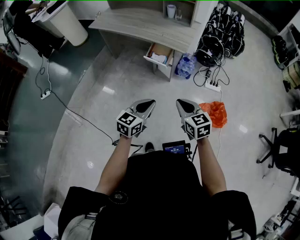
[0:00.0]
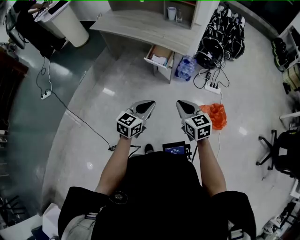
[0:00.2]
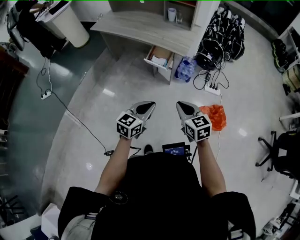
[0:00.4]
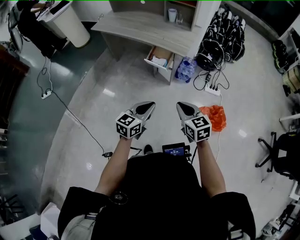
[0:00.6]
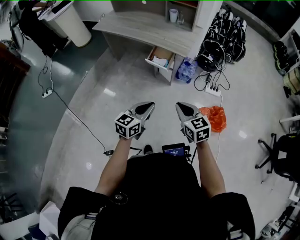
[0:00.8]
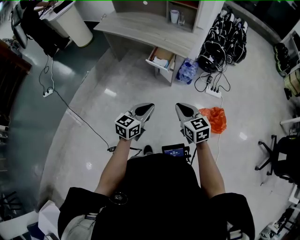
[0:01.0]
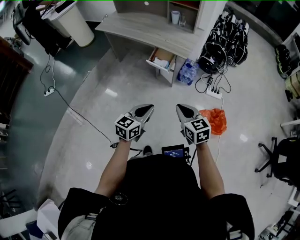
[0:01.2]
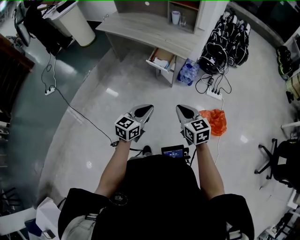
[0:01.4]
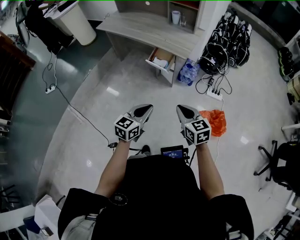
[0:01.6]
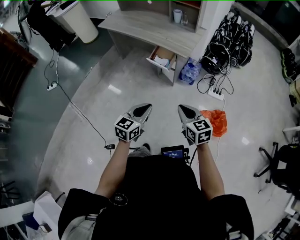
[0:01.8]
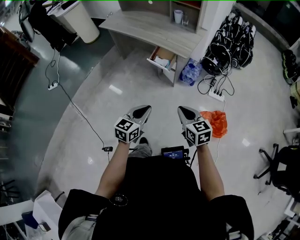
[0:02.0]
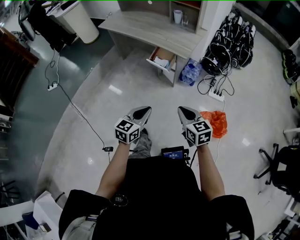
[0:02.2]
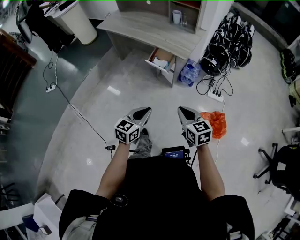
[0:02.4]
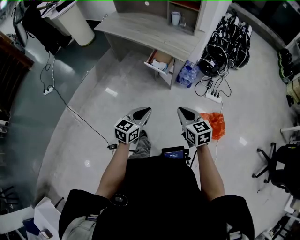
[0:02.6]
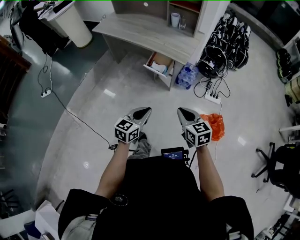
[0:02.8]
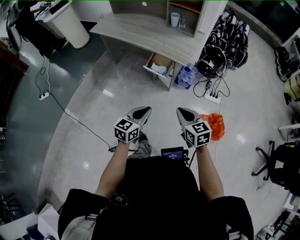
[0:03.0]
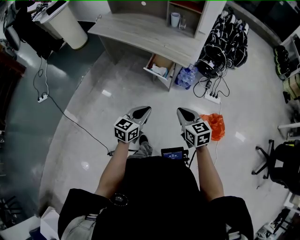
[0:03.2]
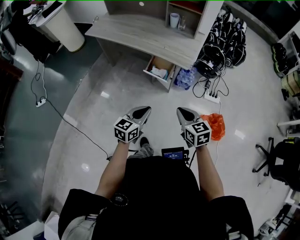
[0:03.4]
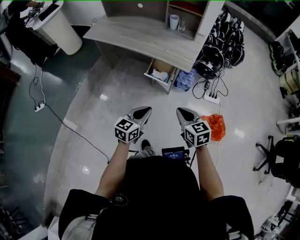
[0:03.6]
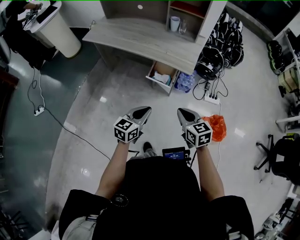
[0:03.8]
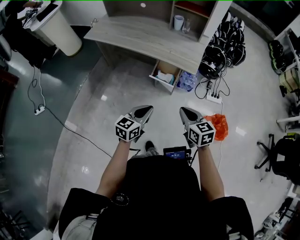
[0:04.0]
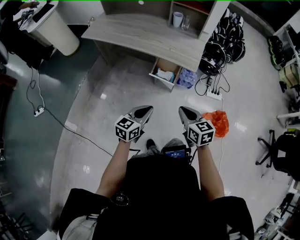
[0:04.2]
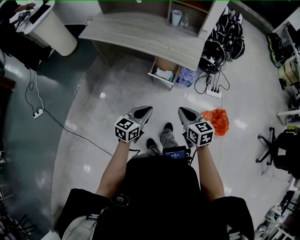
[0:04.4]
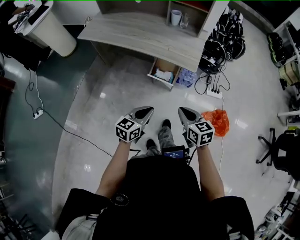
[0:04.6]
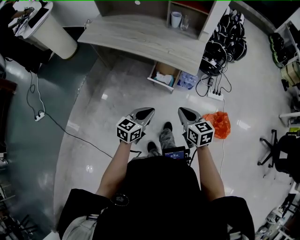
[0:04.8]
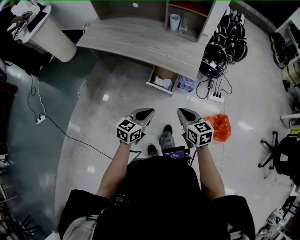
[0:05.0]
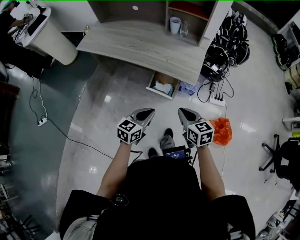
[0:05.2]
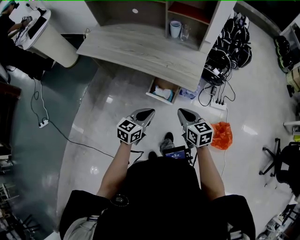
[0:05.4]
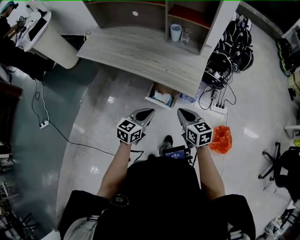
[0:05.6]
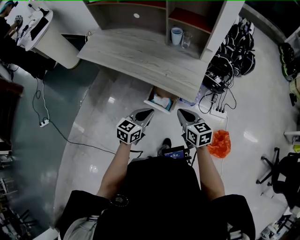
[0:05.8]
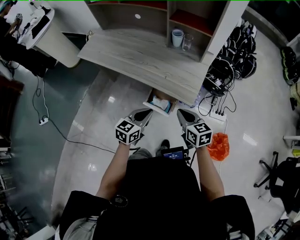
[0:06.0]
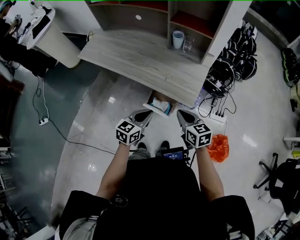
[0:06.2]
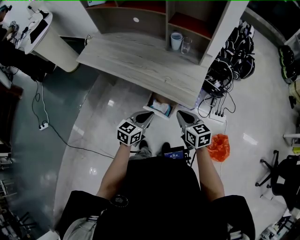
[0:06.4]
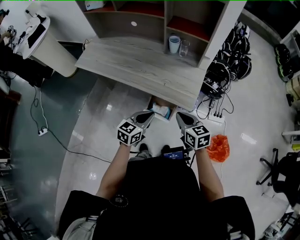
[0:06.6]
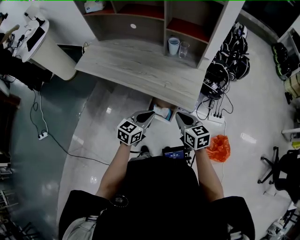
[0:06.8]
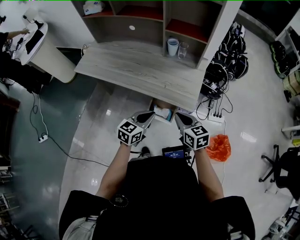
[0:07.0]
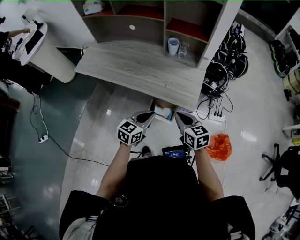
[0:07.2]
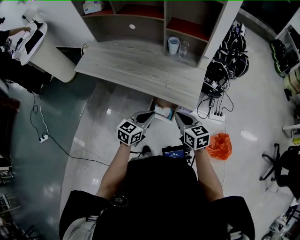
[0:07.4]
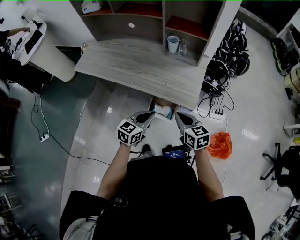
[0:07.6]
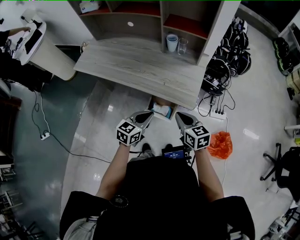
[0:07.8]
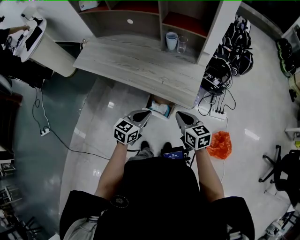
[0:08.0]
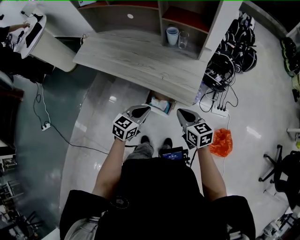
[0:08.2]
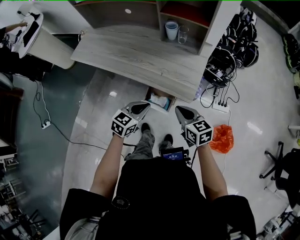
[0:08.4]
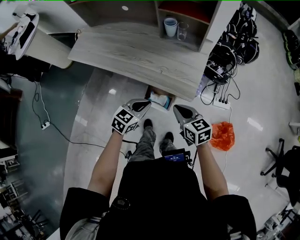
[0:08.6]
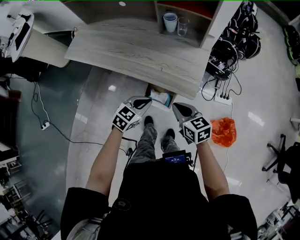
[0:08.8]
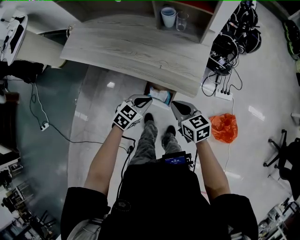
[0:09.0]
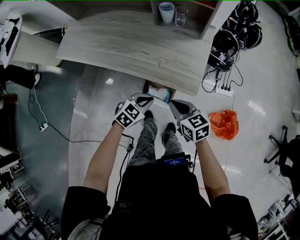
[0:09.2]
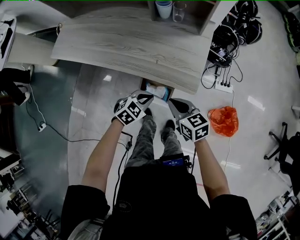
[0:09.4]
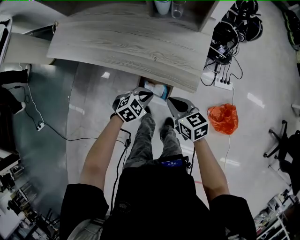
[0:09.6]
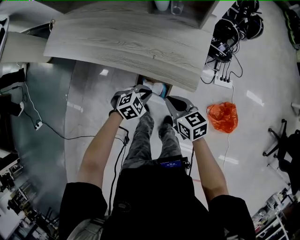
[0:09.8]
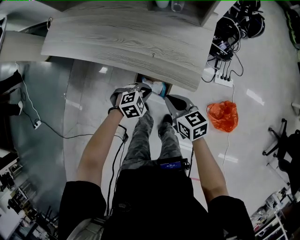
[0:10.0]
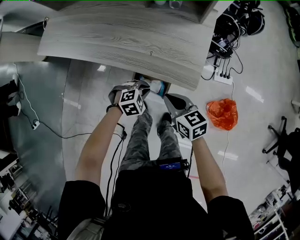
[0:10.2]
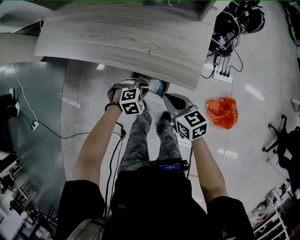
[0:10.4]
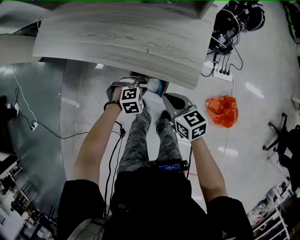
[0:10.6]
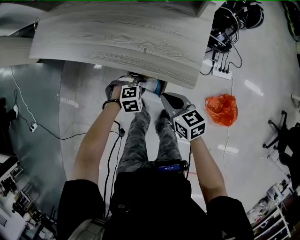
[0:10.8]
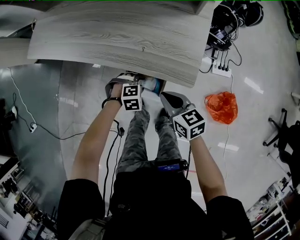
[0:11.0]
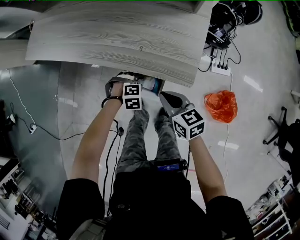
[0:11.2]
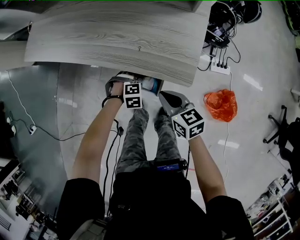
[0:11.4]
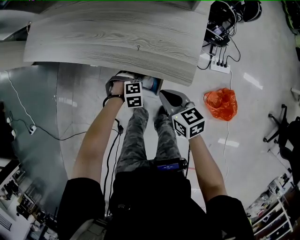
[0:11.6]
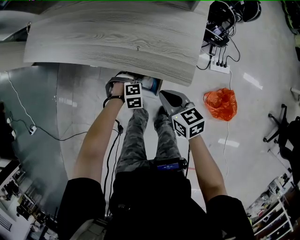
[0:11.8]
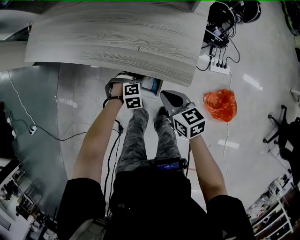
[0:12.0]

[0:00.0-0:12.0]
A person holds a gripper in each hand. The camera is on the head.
0:00.0 to 0:01.6: There are only small adjustments of the grippers.
0:01.6 to 0:03.0: Both grippers move forward, about 10 cm.
0:03.0 to 0:04.4: The two grippers go roughly 15 cm to the left and forward.
0:04.4 to 0:06.0: The two grippers go about 20 cm forward.
0:06.0 to 0:07.6: The grippers make only small movements.
0:07.6 to 0:09.0: The two grippers go about 10 cm downward. The left gripper turns by about 20 degrees.
0:09.0 to 0:10.4: The left gripper goes approximately 15 cm downward, and turns by approximately 40 degrees; the right gripper goes some 10 cm downward.
0:10.4 to 0:12.0: The left gripper heads downward, covering some 5 cm, and opens its fingers.

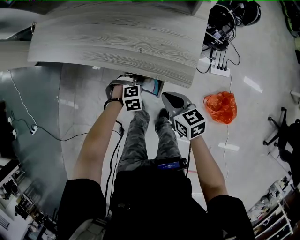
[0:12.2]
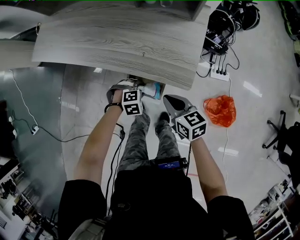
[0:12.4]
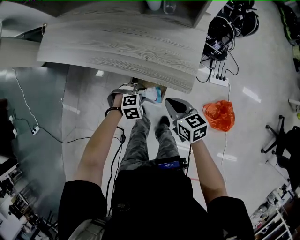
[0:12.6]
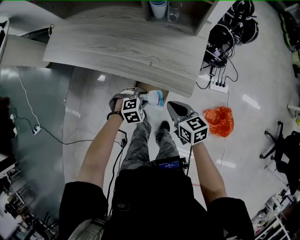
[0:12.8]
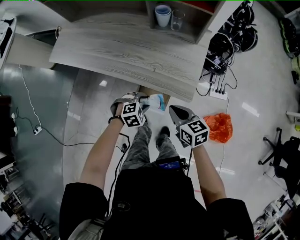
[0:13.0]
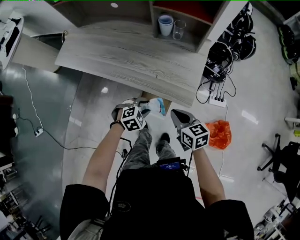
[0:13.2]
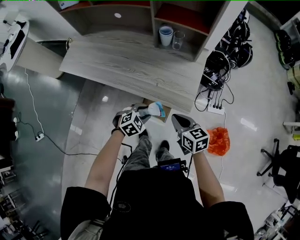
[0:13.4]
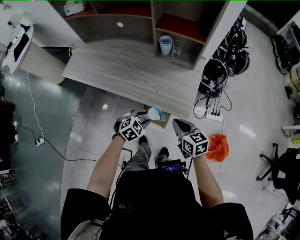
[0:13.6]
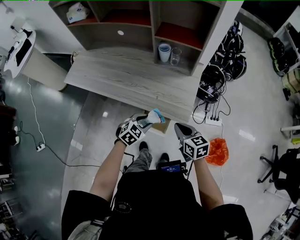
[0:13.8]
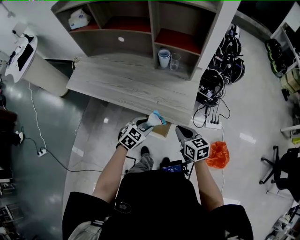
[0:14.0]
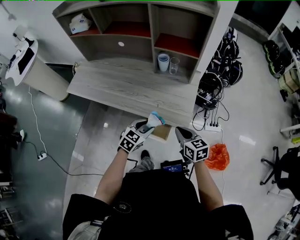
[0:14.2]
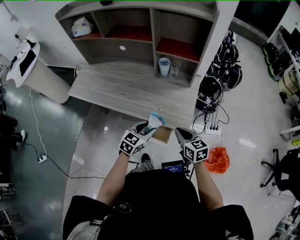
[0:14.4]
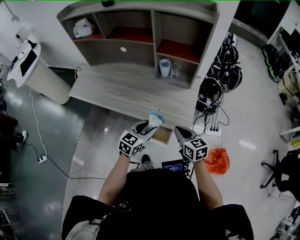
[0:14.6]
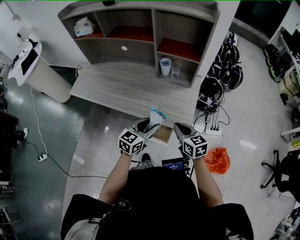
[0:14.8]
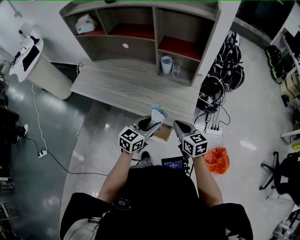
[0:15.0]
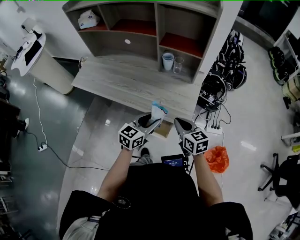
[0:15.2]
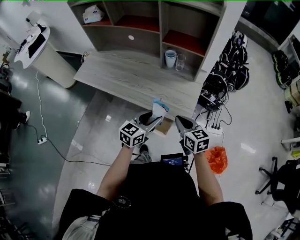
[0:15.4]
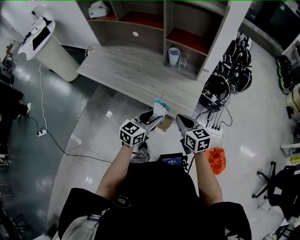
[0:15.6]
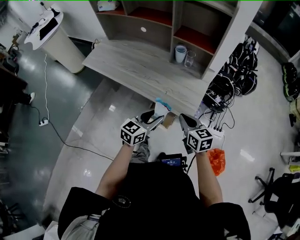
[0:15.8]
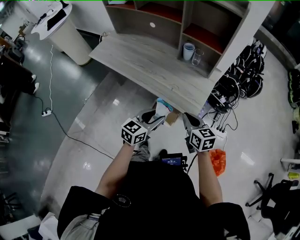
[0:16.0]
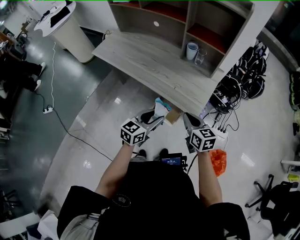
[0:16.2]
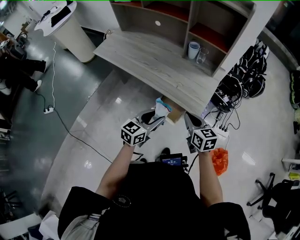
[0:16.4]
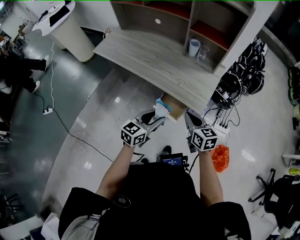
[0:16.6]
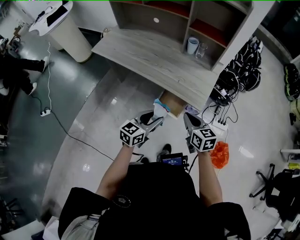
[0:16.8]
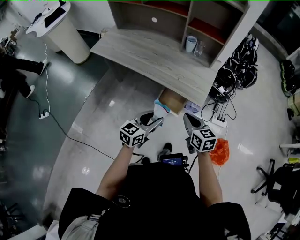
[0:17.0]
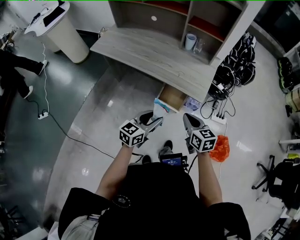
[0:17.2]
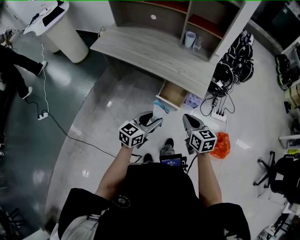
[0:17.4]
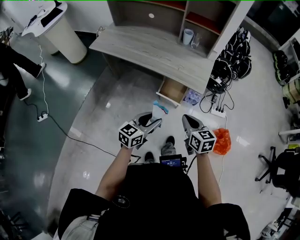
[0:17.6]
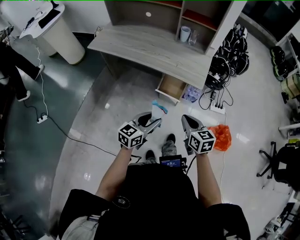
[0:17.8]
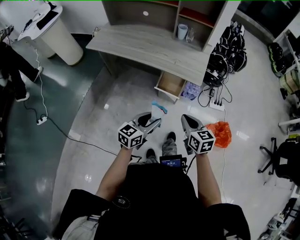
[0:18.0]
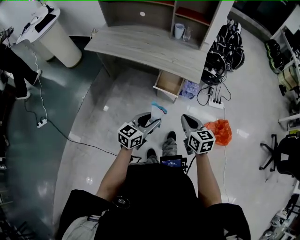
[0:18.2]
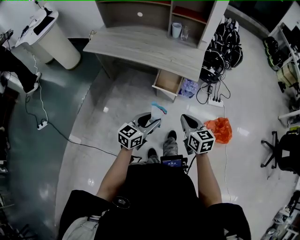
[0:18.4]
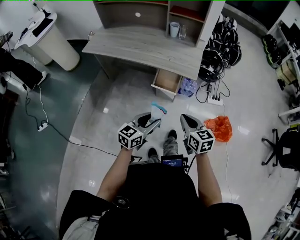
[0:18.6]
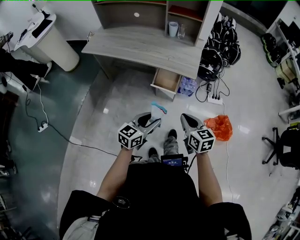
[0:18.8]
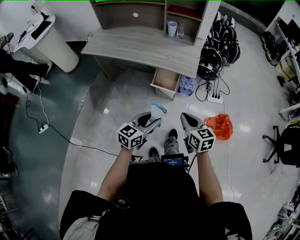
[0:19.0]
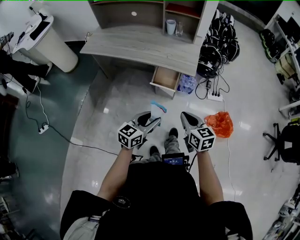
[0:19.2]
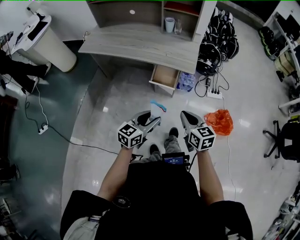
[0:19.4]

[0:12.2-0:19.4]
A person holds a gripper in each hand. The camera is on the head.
0:12.2 to 0:13.6: The right gripper shifts about 15 cm upward. Meanwhile the left gripper heads upward, covering roughly 20 cm, and swivels roughly 40 degrees.
0:13.6 to 0:15.0: The left gripper moves upward, approximately 15 cm, and points its fingers roughly 40 degrees further upward, while the right gripper travels upward by about 5 cm.
0:15.0 to 0:16.6: The right gripper is displaced backward by approximately 10 cm, while the left gripper travels backward by approximately 10 cm.
0:16.6 to 0:18.0: The grippers both shift backward by roughly 20 cm.
0:18.0 to 0:19.4: The grippers make only small movements.

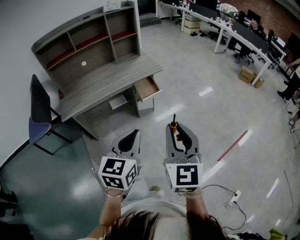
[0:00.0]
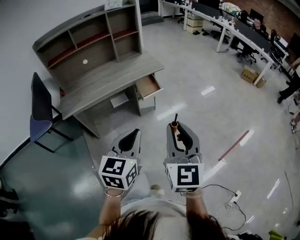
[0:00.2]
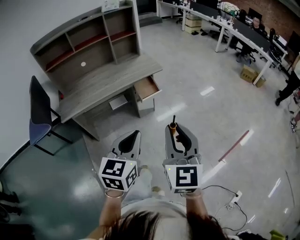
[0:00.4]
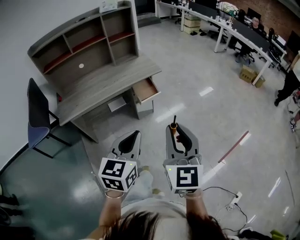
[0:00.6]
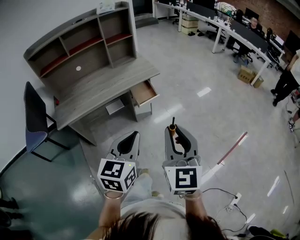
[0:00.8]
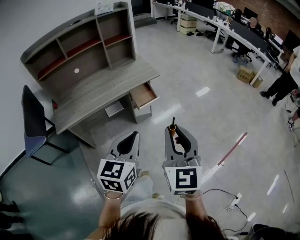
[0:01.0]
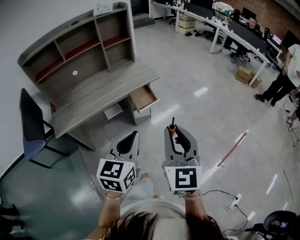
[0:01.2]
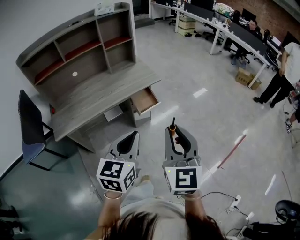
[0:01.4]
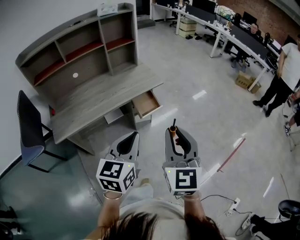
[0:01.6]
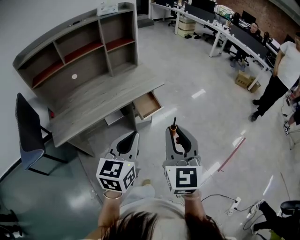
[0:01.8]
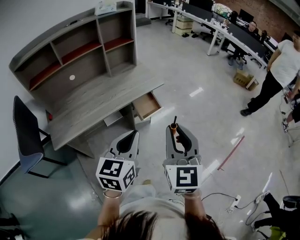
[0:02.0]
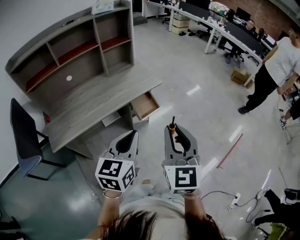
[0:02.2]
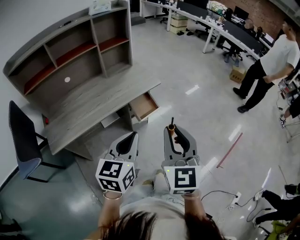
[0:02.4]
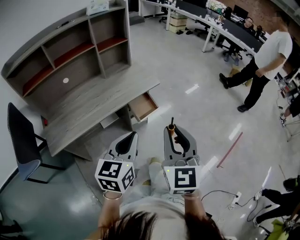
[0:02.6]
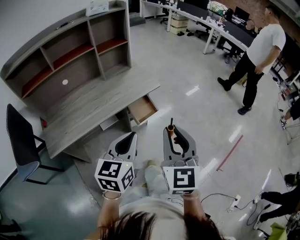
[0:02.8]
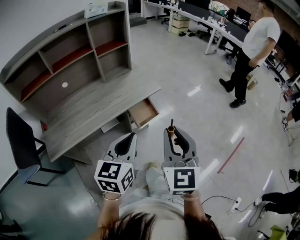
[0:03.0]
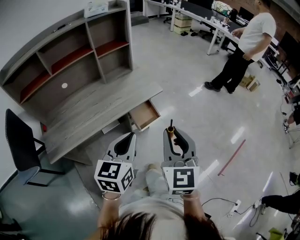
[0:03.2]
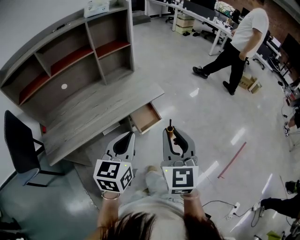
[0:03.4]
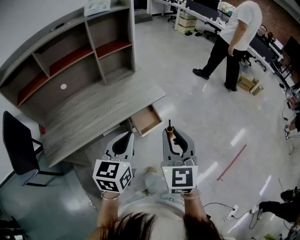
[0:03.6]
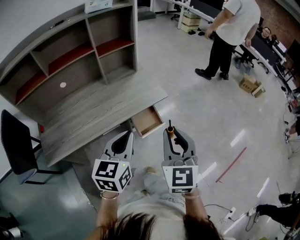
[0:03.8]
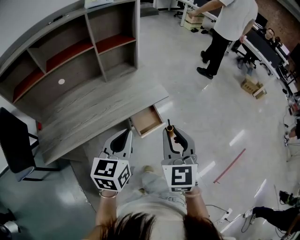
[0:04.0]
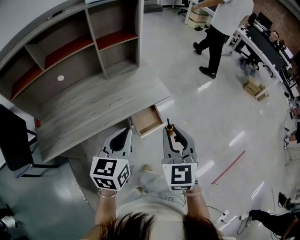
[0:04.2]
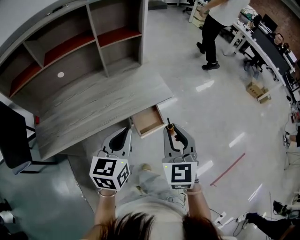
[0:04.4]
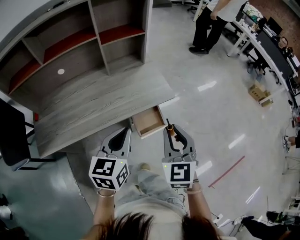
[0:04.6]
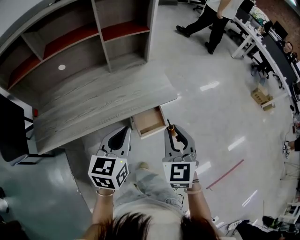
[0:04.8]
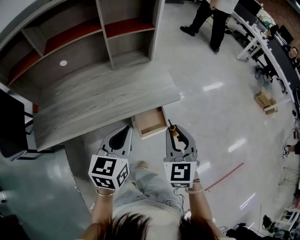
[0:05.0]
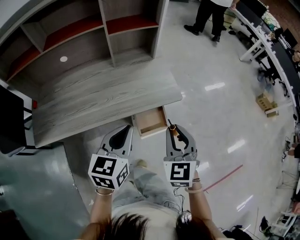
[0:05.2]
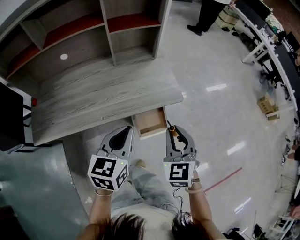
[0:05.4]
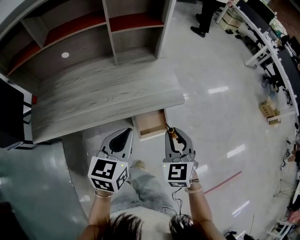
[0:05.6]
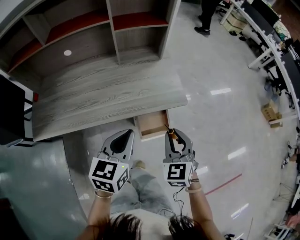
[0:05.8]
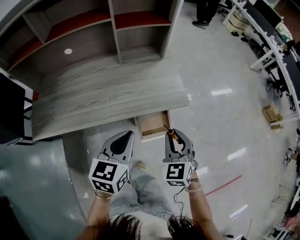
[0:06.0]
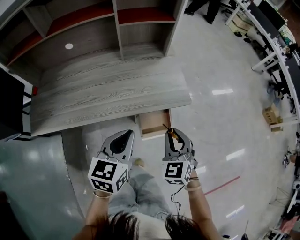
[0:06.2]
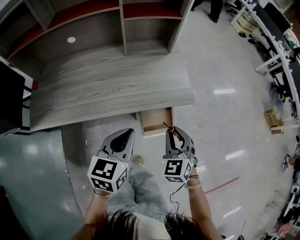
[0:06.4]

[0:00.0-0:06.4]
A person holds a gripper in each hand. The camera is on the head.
0:00.0 to 0:01.6: The grippers both shift forward by some 15 cm.
0:01.6 to 0:03.2: Both grippers move forward, roughly 15 cm.
0:03.2 to 0:04.8: Both grippers move forward and downward, roughly 20 cm. The right gripper swivels roughly 20 degrees.
0:04.8 to 0:06.4: The left gripper shifts about 10 cm downward. Meanwhile the right gripper is displaced downward by some 15 cm, and swivels approximately 20 degrees.
